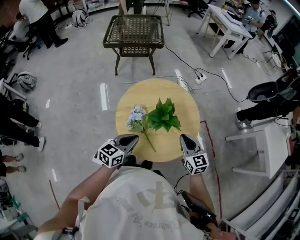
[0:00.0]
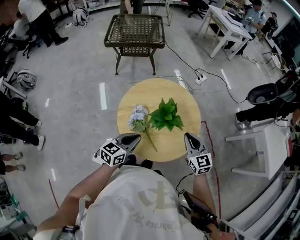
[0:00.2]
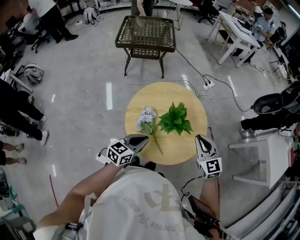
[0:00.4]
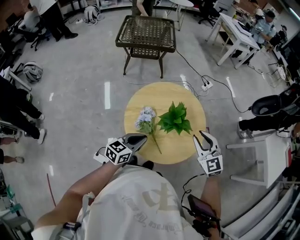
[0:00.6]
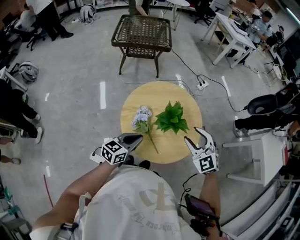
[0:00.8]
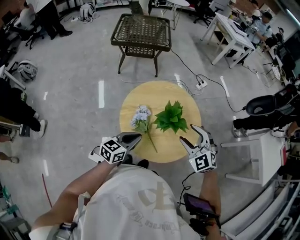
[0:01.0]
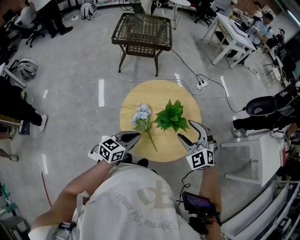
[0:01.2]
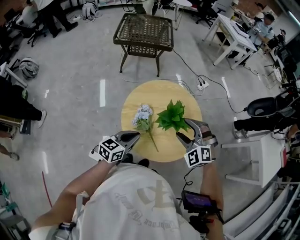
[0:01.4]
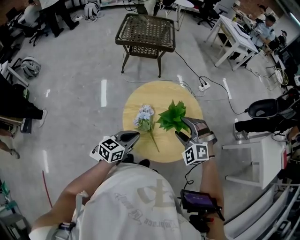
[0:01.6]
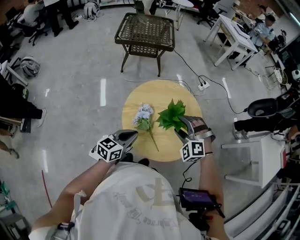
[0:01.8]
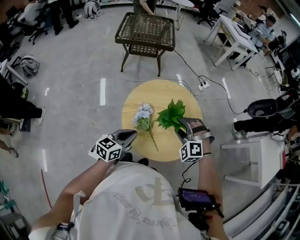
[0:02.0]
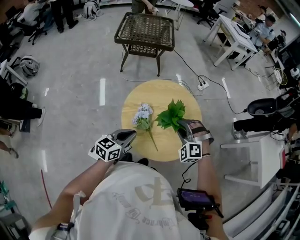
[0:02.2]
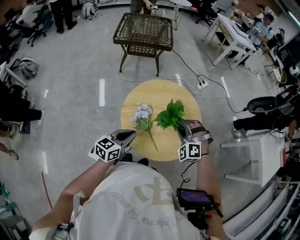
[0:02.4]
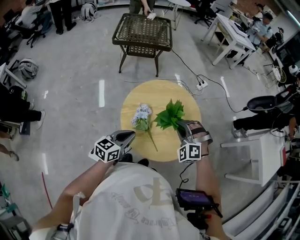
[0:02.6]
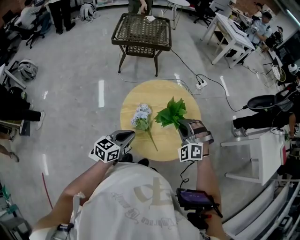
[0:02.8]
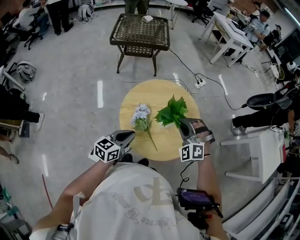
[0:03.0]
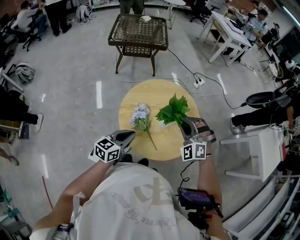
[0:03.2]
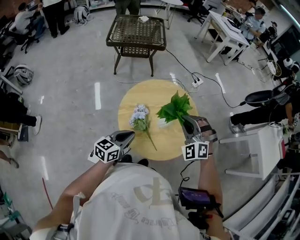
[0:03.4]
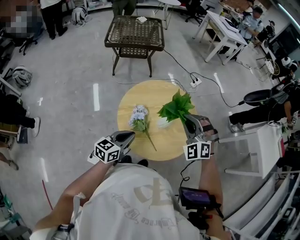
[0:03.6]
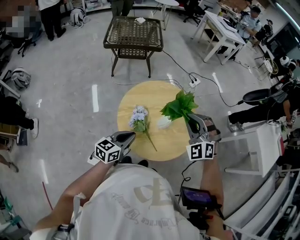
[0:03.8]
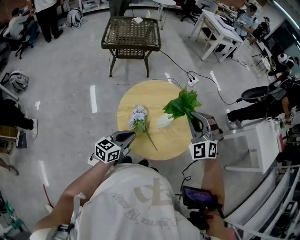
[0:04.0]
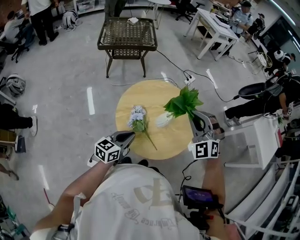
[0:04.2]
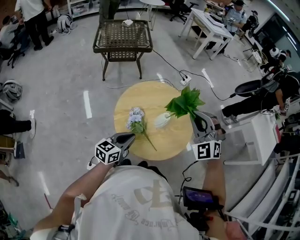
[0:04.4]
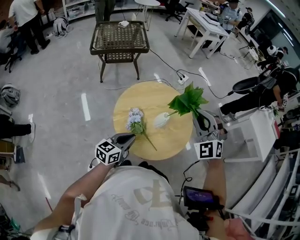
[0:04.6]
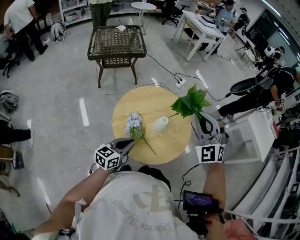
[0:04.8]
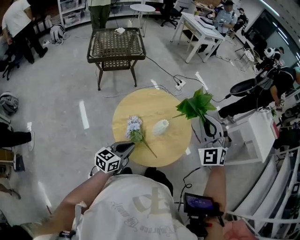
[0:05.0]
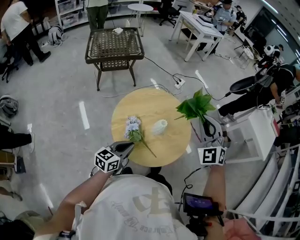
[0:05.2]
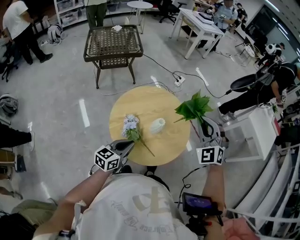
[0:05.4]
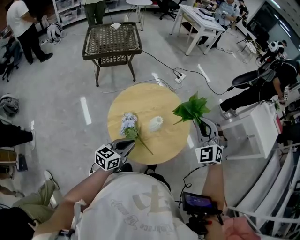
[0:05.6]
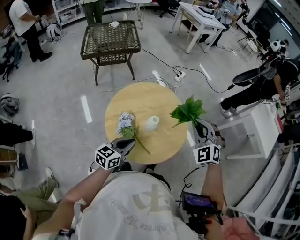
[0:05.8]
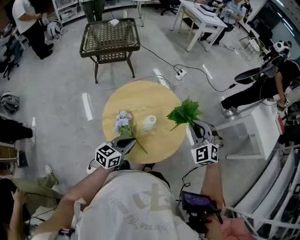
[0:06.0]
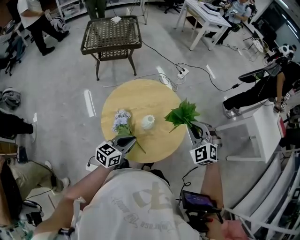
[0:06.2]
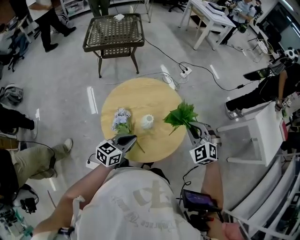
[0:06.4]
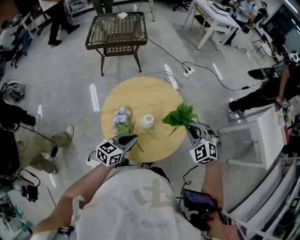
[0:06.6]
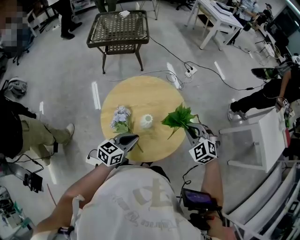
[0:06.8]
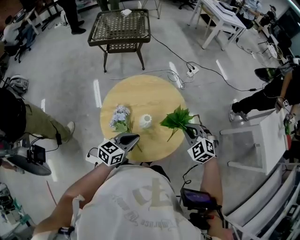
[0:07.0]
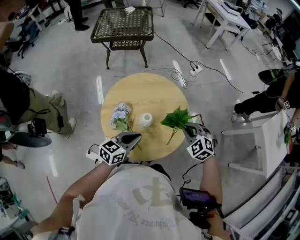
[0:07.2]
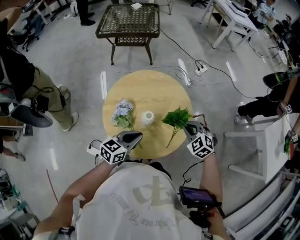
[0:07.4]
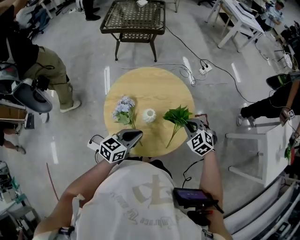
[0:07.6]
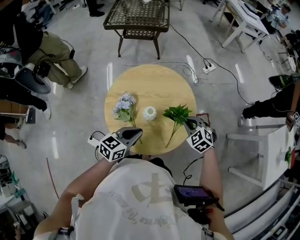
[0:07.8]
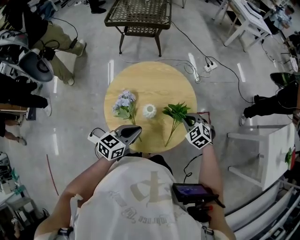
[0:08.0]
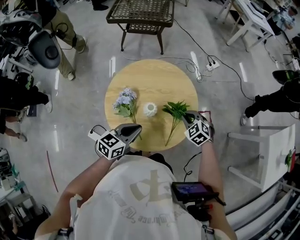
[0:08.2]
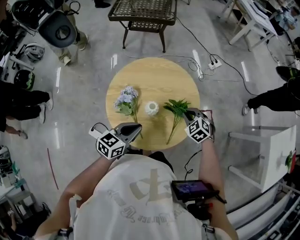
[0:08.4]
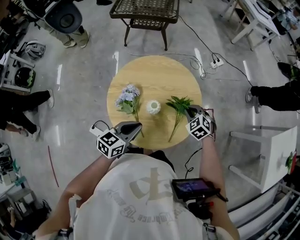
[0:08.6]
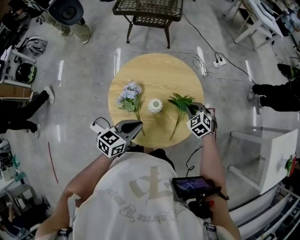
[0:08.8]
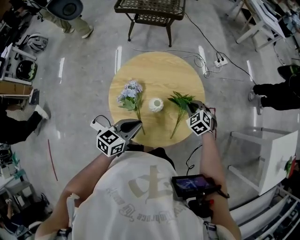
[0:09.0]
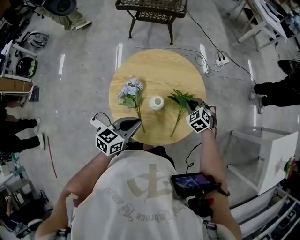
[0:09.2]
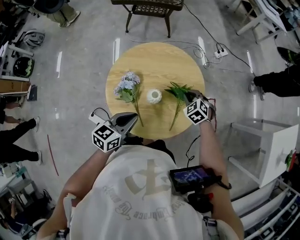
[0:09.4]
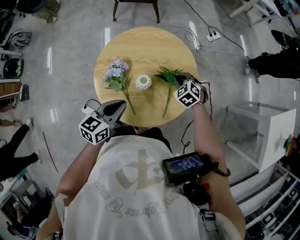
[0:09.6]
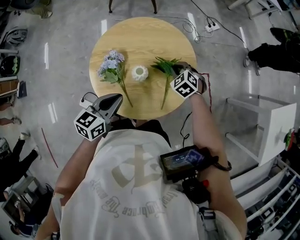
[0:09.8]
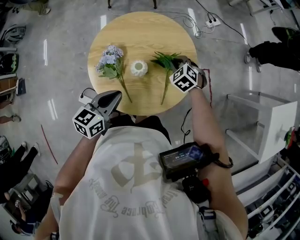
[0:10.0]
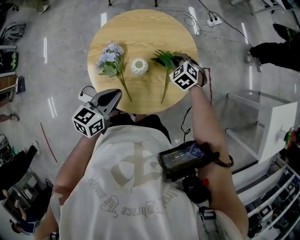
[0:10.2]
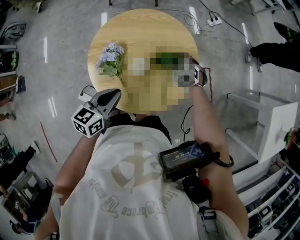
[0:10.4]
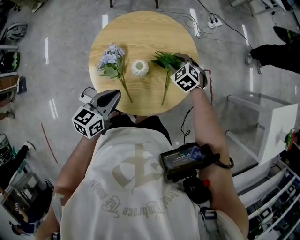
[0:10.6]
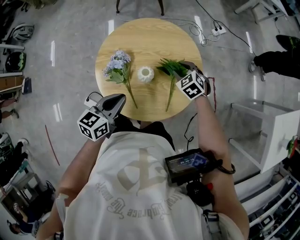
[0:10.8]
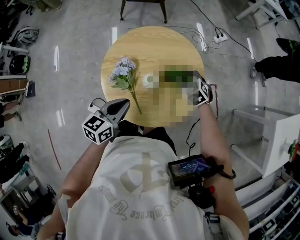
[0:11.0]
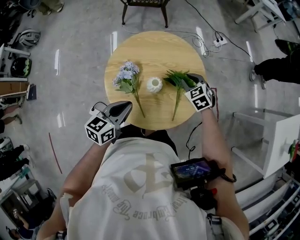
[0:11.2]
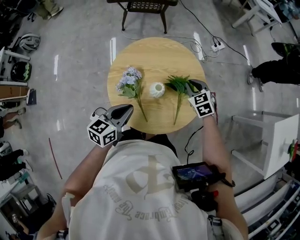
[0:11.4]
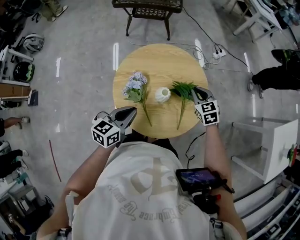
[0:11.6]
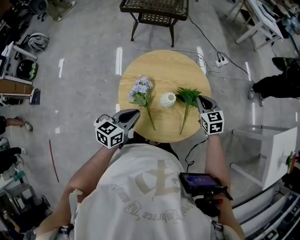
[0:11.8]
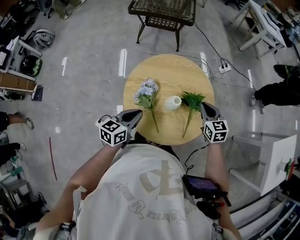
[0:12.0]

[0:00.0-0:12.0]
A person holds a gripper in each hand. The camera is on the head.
0:00.0 to 0:01.6: The right gripper shifts approximately 10 cm to the left and upward, rolls counterclockwise, seen from behind, by about 70 degrees, and opens up.
0:01.6 to 0:03.0: The right gripper closes its fingers.
0:03.0 to 0:04.4: The right gripper shifts roughly 10 cm upward.
0:04.4 to 0:06.0: The left gripper travels to the right by about 5 cm. The right gripper is displaced to the right and downward by approximately 15 cm.
0:06.0 to 0:07.6: The right gripper heads downward, covering approximately 15 cm, and swivels some 30 degrees; the left gripper is displaced to the right by some 5 cm.
0:07.6 to 0:09.0: The right gripper heads downward and forward, covering about 10 cm.
0:09.0 to 0:10.4: The grippers stay close to where they were, moving slightly.
0:10.4 to 0:12.0: The right gripper heads upward, covering some 15 cm, and rotates about 40 degrees. The left gripper goes approximately 10 cm to the left.

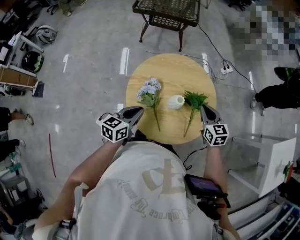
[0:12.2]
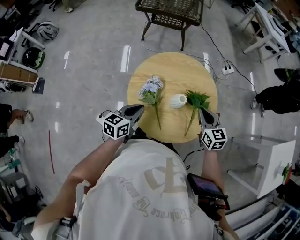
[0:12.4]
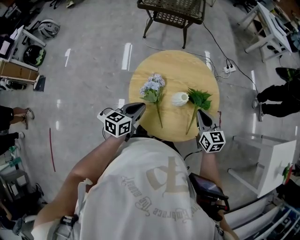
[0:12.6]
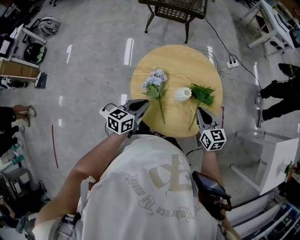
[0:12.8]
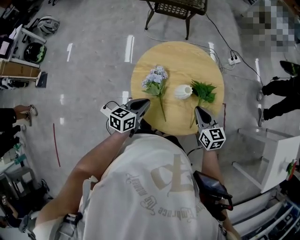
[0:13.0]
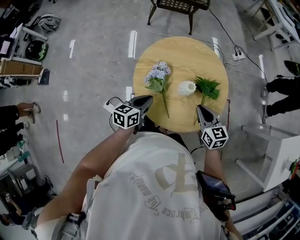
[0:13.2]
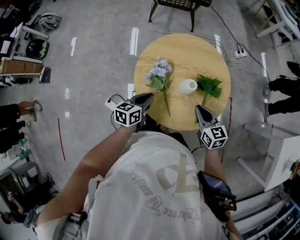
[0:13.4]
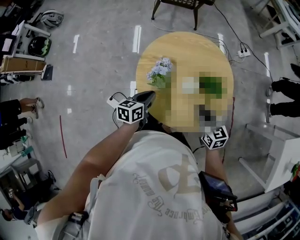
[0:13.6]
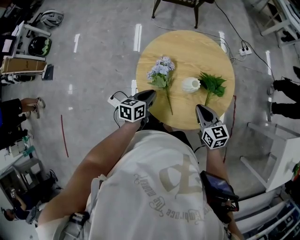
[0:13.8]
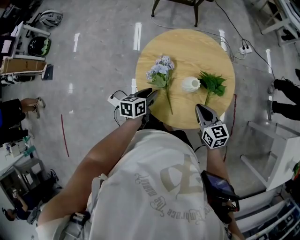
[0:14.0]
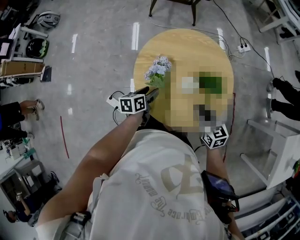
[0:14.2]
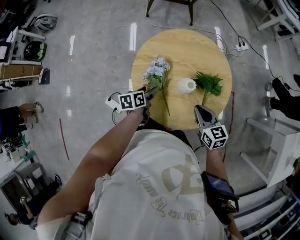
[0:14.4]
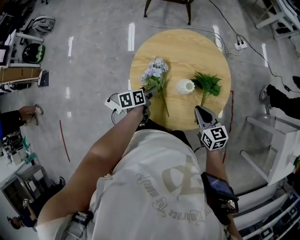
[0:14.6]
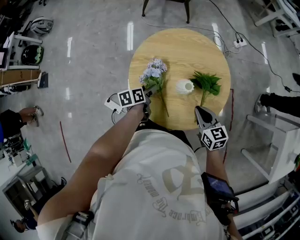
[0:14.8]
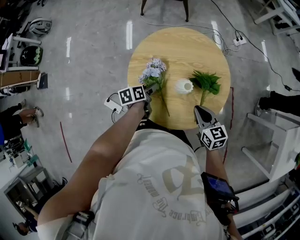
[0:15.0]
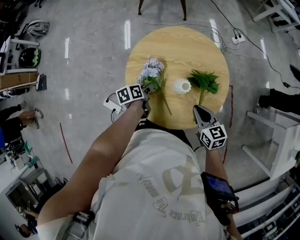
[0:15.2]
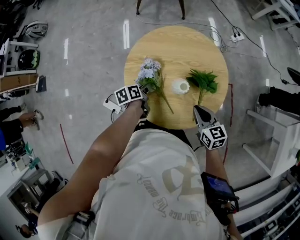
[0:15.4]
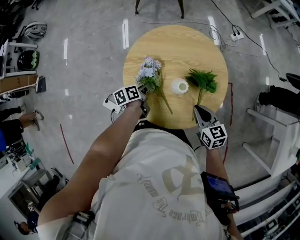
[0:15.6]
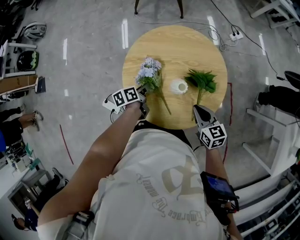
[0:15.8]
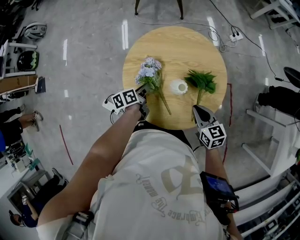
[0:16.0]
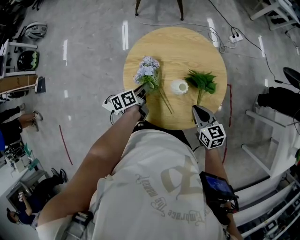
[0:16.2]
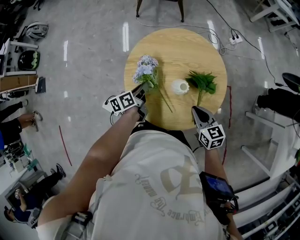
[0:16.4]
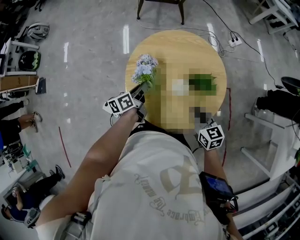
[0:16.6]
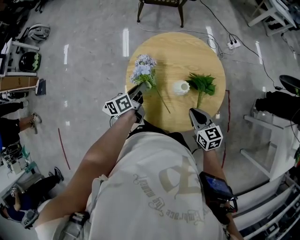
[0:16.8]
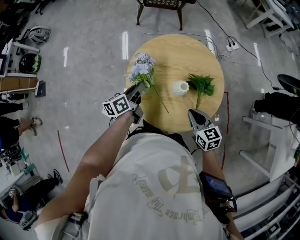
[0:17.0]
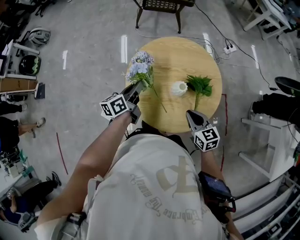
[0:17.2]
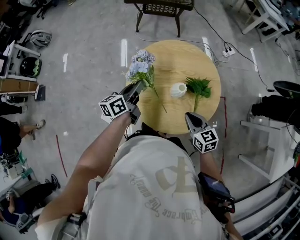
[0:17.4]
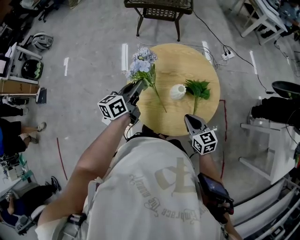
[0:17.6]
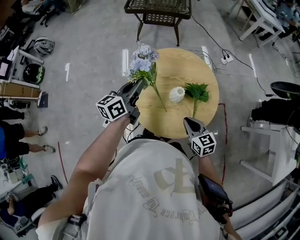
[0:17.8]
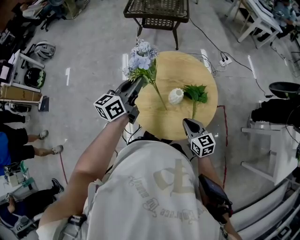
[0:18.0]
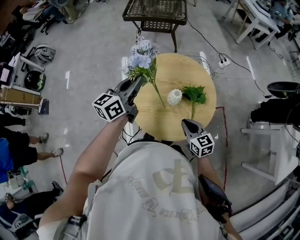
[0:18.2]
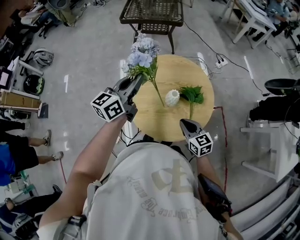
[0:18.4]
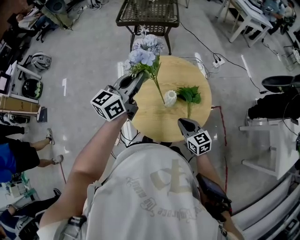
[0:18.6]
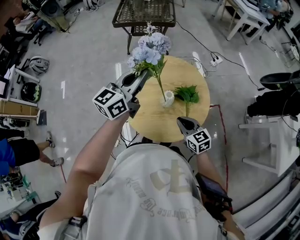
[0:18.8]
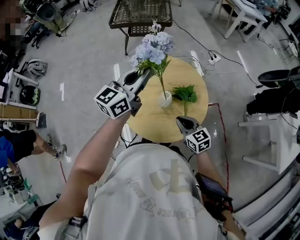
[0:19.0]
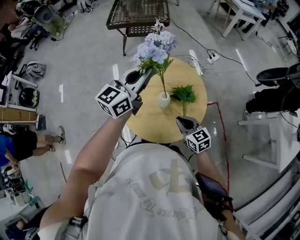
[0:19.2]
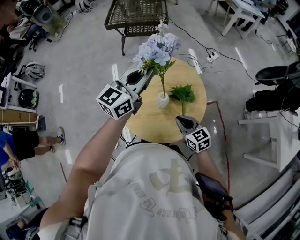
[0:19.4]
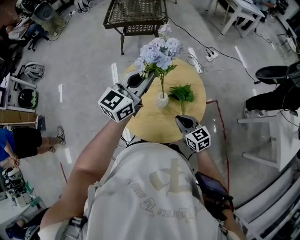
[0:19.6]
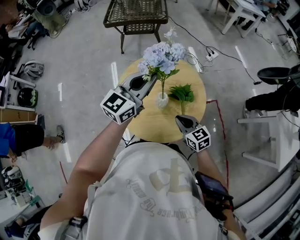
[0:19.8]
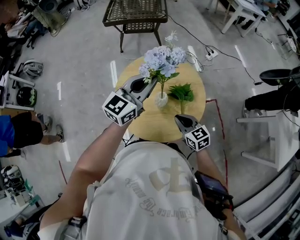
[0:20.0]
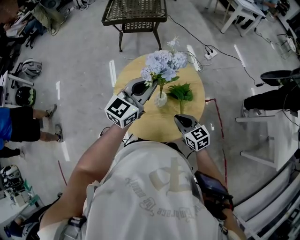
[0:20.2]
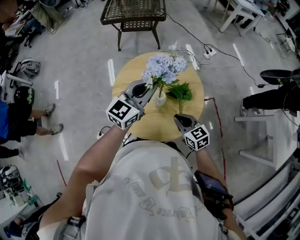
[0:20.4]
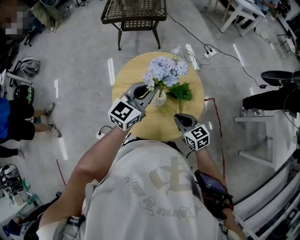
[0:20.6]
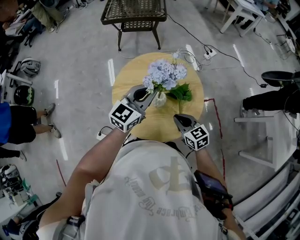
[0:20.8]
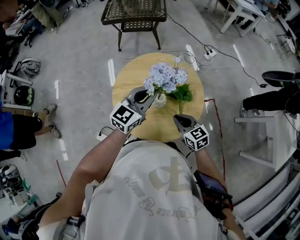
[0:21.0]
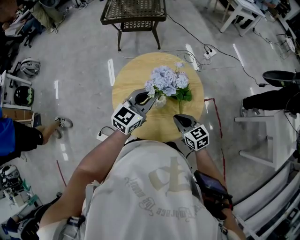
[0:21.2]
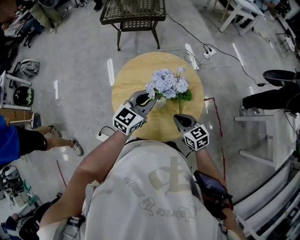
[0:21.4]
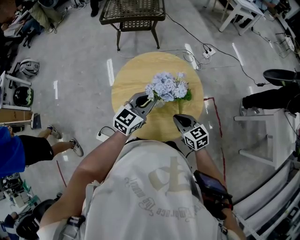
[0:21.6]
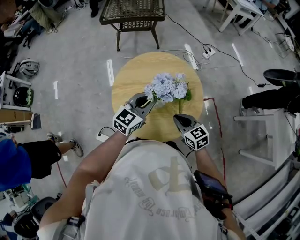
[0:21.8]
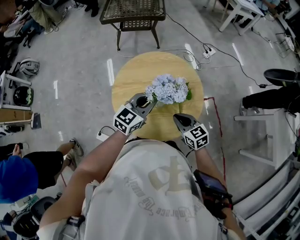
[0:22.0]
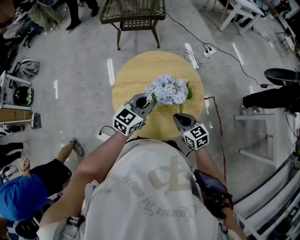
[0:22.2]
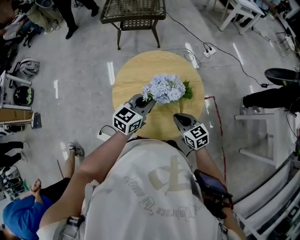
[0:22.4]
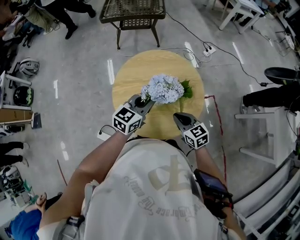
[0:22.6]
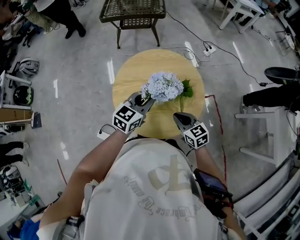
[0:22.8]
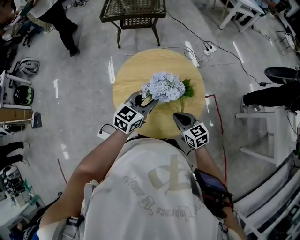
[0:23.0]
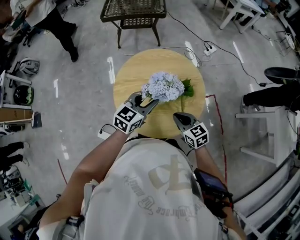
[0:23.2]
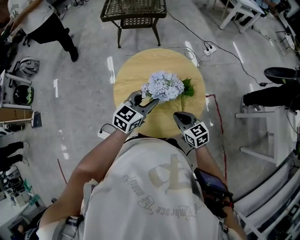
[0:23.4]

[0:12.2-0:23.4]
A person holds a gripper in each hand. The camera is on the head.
0:12.2 to 0:13.8: The left gripper moves downward, about 10 cm, while the right gripper travels backward, to the left and downward by some 10 cm.
0:13.8 to 0:15.4: The left gripper heads downward and forward, covering roughly 10 cm, changes its angle by some 30 degrees, and opens, then closes once more.
0:15.4 to 0:17.0: The left gripper shifts some 10 cm upward, and swivels roughly 30 degrees.
0:17.0 to 0:18.6: The left gripper heads upward, covering approximately 25 cm, and rotates about 40 degrees.
0:18.6 to 0:20.2: The left gripper moves to the right, about 10 cm, and rotates some 20 degrees.
0:20.2 to 0:21.8: The left gripper goes about 10 cm downward.
0:21.8 to 0:23.4: The left gripper opens up.

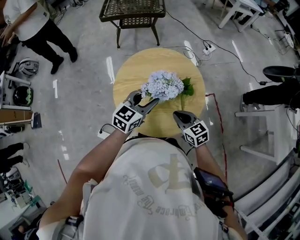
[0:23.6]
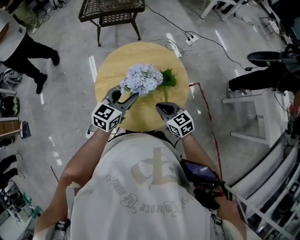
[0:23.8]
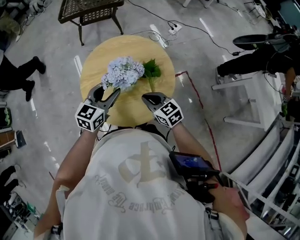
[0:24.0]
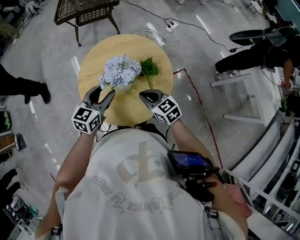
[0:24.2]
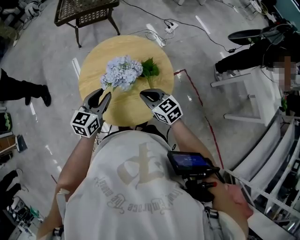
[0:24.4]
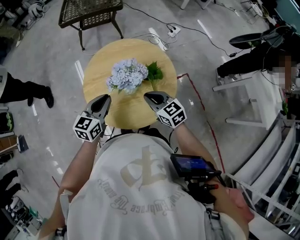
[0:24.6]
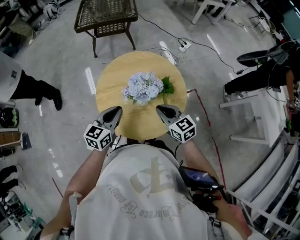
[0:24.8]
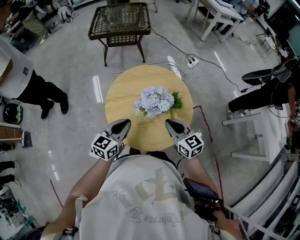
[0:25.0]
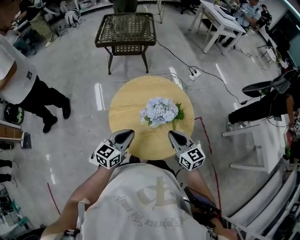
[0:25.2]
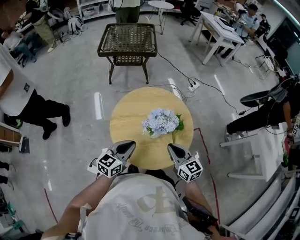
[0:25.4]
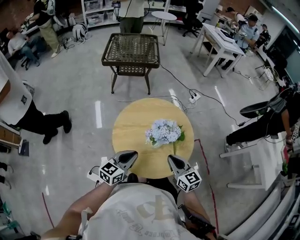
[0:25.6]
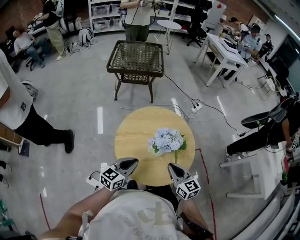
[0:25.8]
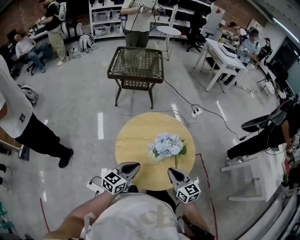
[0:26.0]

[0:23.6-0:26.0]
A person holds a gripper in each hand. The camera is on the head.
0:23.6 to 0:24.8: The left gripper is displaced to the left by approximately 5 cm, and closes its fingers.
0:24.8 to 0:26.0: The right gripper moves roughly 5 cm.
